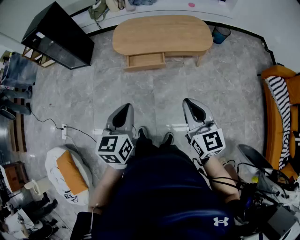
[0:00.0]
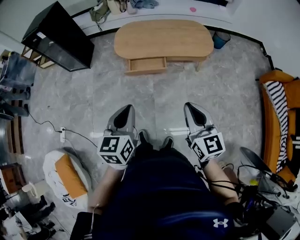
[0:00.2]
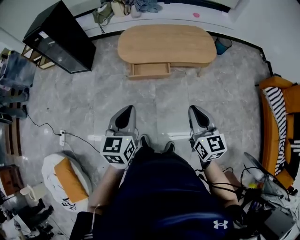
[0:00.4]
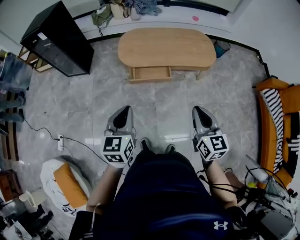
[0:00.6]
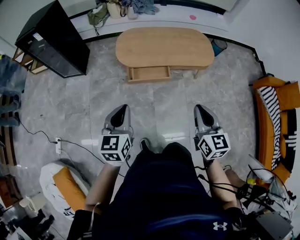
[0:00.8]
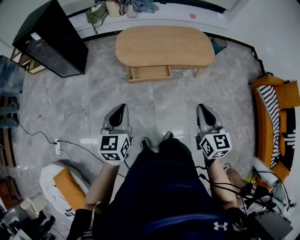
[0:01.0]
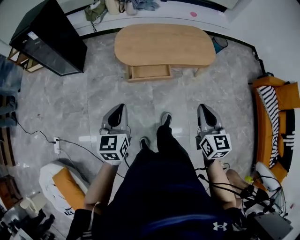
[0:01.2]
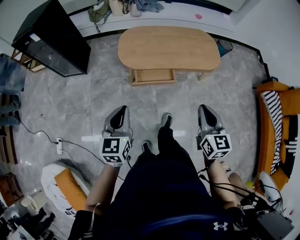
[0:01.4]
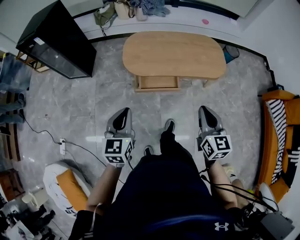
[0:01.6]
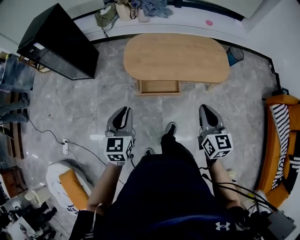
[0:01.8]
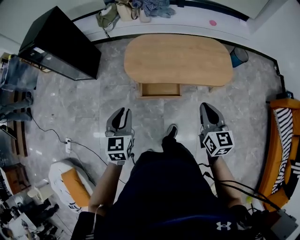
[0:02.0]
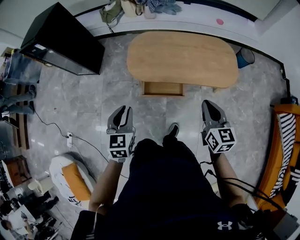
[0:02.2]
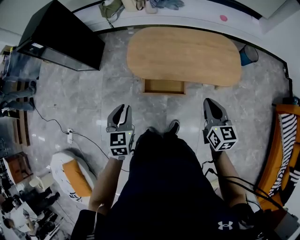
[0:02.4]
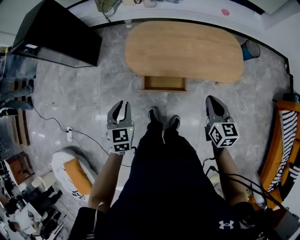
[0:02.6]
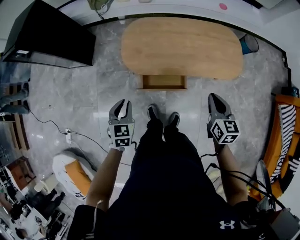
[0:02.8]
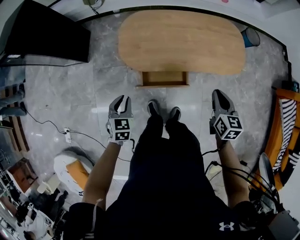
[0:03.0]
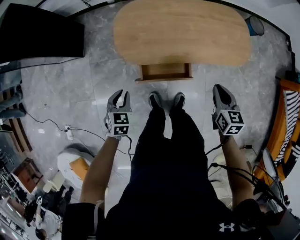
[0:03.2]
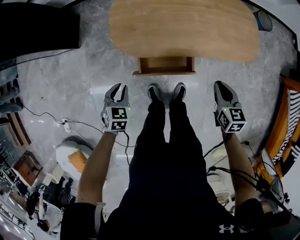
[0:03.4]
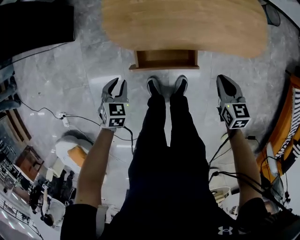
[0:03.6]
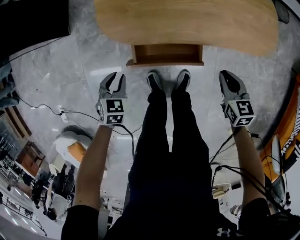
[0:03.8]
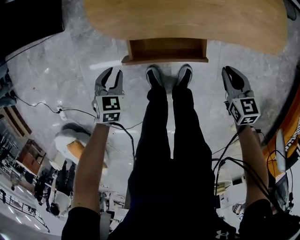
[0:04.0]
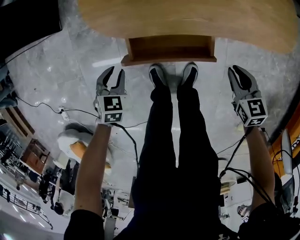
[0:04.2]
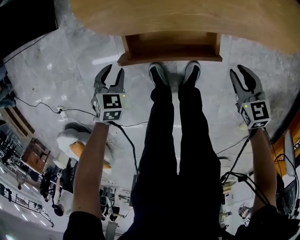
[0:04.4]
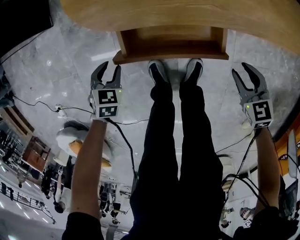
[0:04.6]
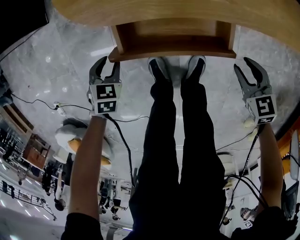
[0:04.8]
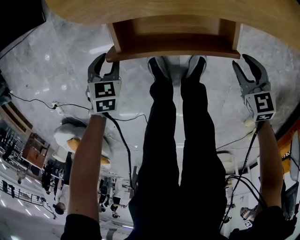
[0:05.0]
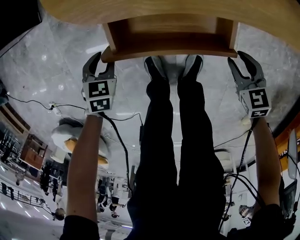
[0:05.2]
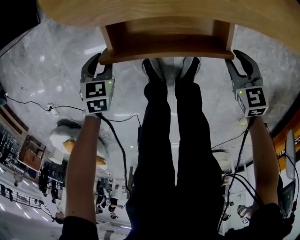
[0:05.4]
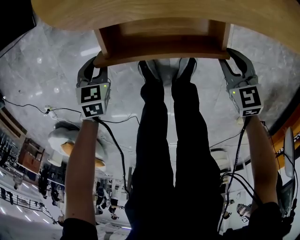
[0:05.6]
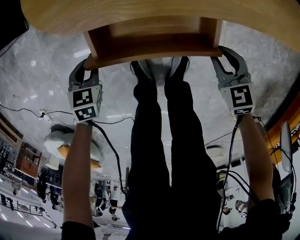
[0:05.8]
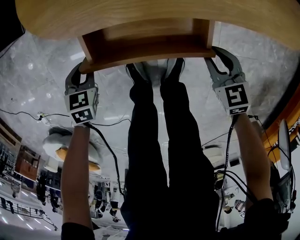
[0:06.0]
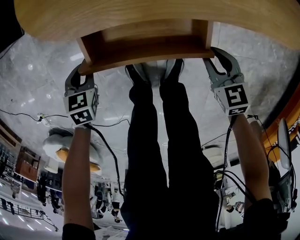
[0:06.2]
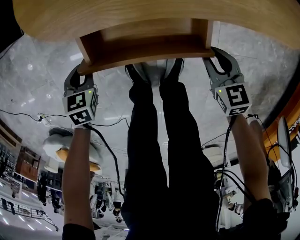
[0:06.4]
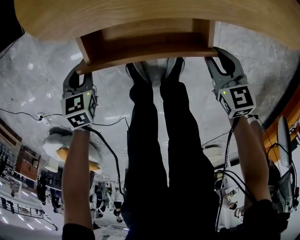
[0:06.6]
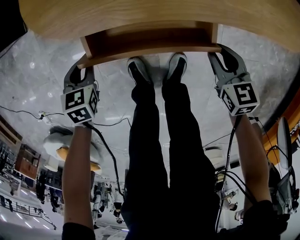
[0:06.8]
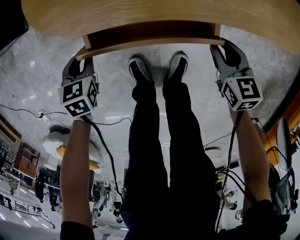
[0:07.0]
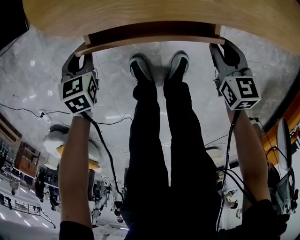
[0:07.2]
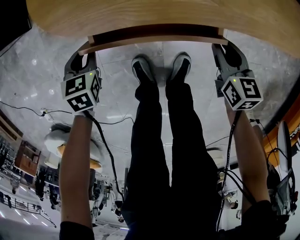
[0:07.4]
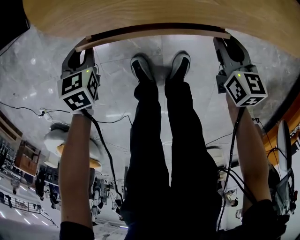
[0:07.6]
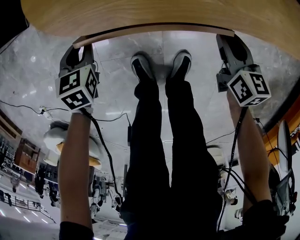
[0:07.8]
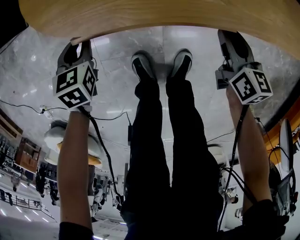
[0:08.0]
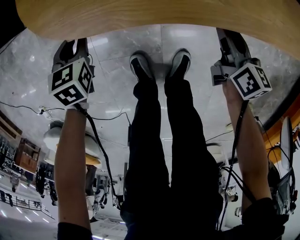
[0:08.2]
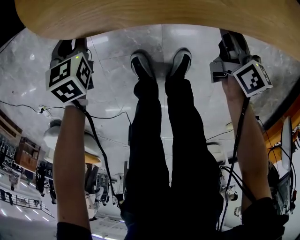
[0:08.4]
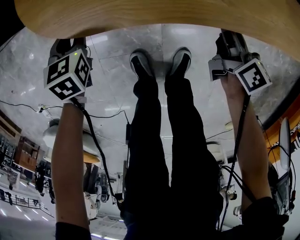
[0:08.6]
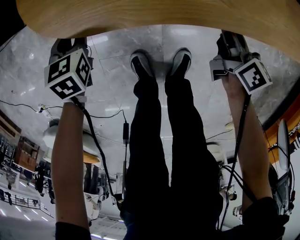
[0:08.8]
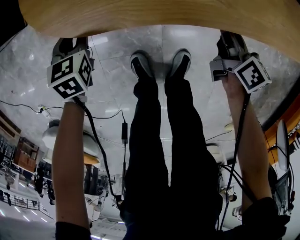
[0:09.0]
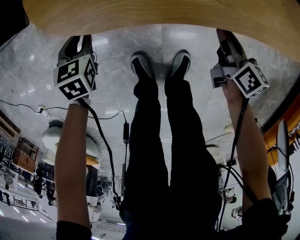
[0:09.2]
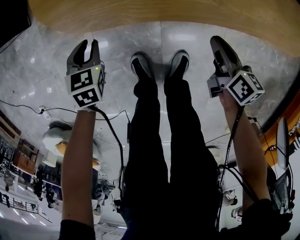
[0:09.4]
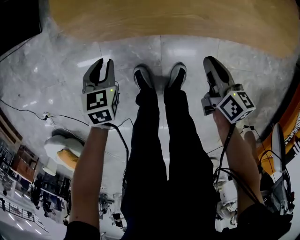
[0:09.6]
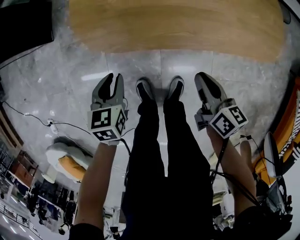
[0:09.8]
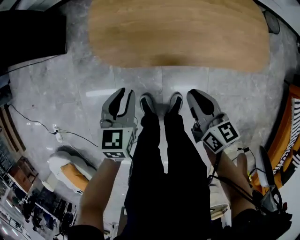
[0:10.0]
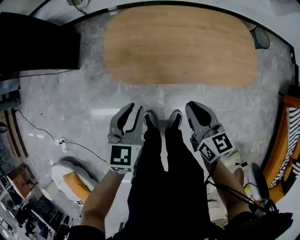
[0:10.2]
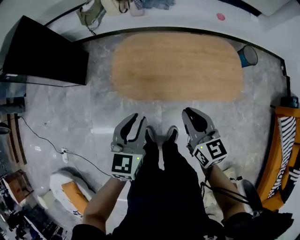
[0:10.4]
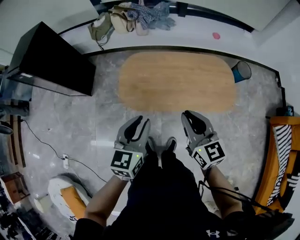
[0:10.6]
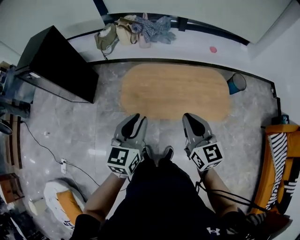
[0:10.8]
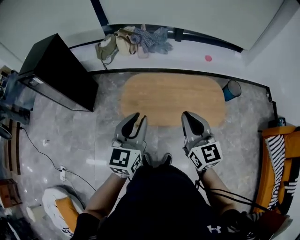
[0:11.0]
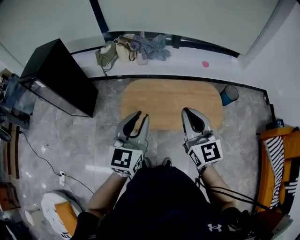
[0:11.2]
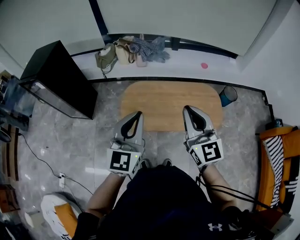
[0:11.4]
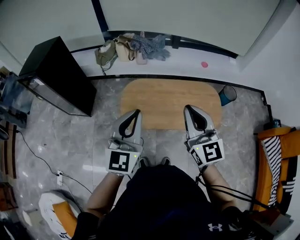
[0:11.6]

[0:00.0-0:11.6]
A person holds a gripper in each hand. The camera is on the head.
0:00.0 to 0:01.4: The left gripper goes approximately 25 cm to the left and forward; the right gripper travels forward and to the left by some 20 cm.
0:01.4 to 0:02.8: The two grippers go some 30 cm forward and downward. The left gripper turns by some 30 degrees.
0:02.8 to 0:04.4: The two grippers go approximately 40 cm downward. The left gripper changes its angle by some 30 degrees; the right gripper turns by about 30 degrees, and opens.
0:04.4 to 0:05.8: Both grippers travel together downward, roughly 10 cm.
0:05.8 to 0:07.2: The right gripper rotates approximately 20 degrees, while the left gripper moves approximately 5 cm.
0:07.2 to 0:08.8: Both grippers travel together forward, approximately 10 cm. The right gripper rotates about 40 degrees.
0:08.8 to 0:10.2: Both grippers travel together upward, about 40 cm. The left gripper swivels about 30 degrees. Meanwhile the right gripper turns by about 30 degrees.
0:10.2 to 0:11.6: The grippers both shift upward by about 40 cm. The left gripper points its fingers about 30 degrees further upward, and closes its fingers. The right gripper changes its angle by roughly 40 degrees.

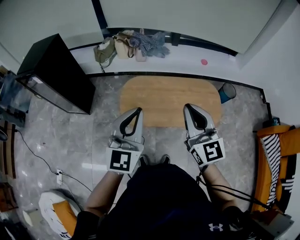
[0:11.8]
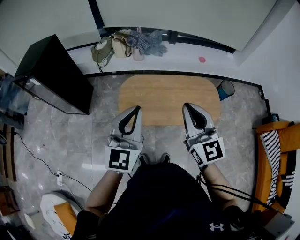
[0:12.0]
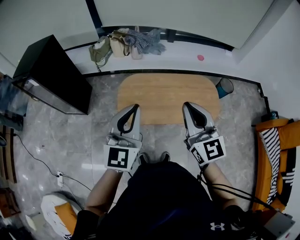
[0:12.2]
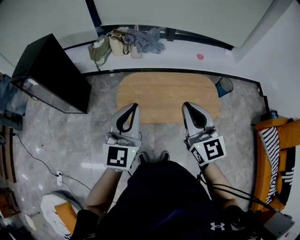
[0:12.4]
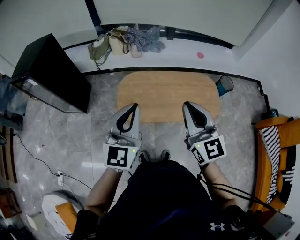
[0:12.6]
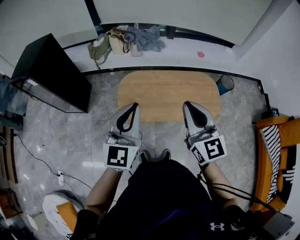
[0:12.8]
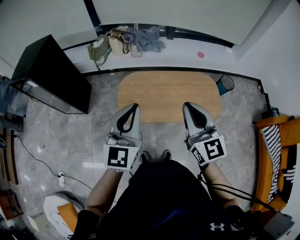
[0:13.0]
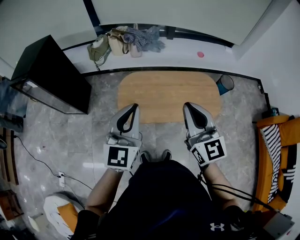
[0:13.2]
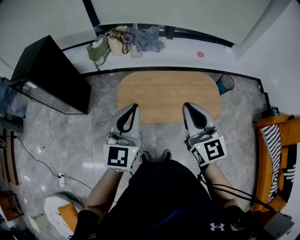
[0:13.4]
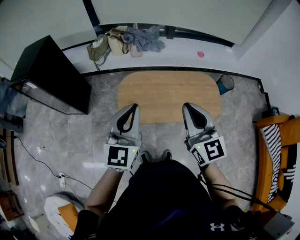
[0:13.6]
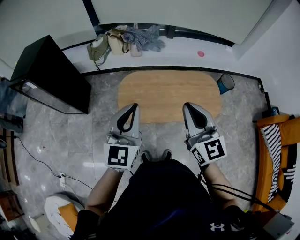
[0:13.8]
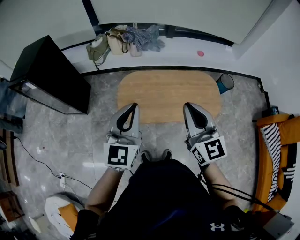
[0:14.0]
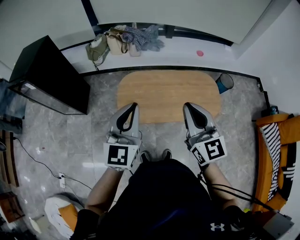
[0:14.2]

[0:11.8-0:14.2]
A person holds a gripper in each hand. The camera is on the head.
0:11.8 to 0:14.2: The grippers stay close to where they were, moving slightly.

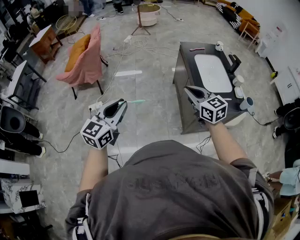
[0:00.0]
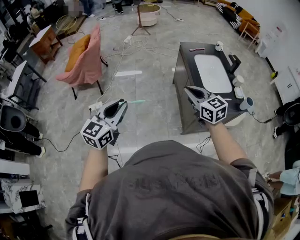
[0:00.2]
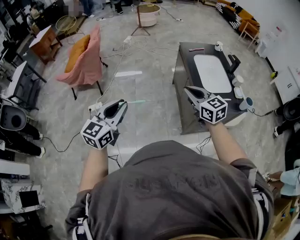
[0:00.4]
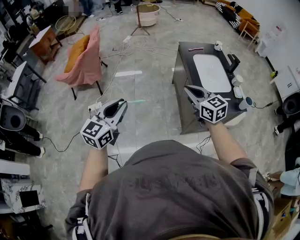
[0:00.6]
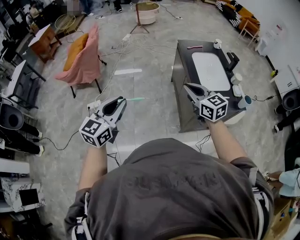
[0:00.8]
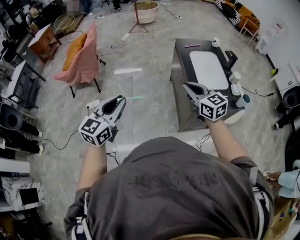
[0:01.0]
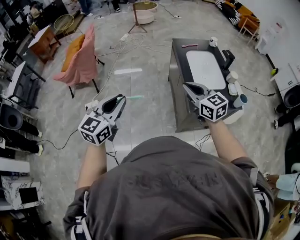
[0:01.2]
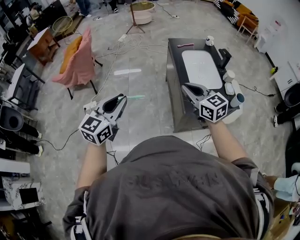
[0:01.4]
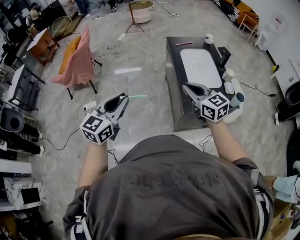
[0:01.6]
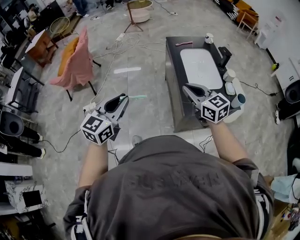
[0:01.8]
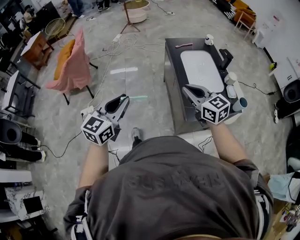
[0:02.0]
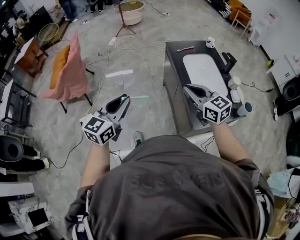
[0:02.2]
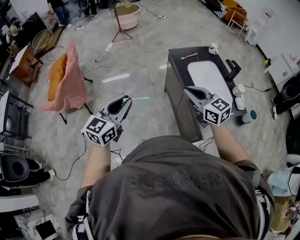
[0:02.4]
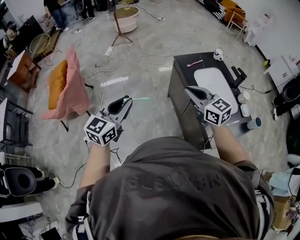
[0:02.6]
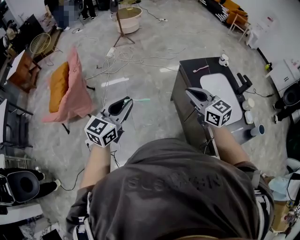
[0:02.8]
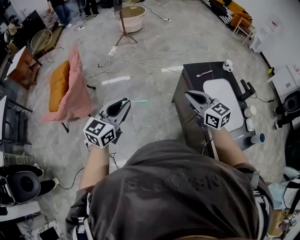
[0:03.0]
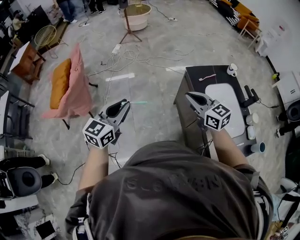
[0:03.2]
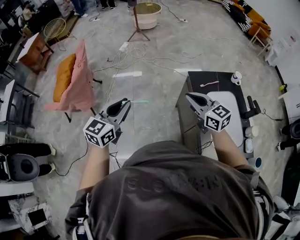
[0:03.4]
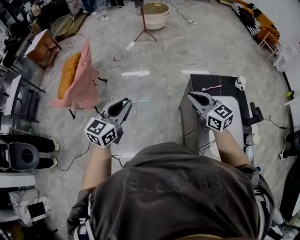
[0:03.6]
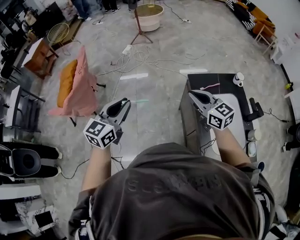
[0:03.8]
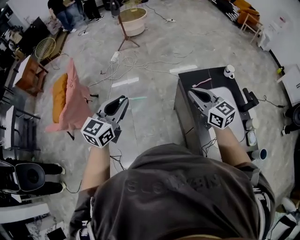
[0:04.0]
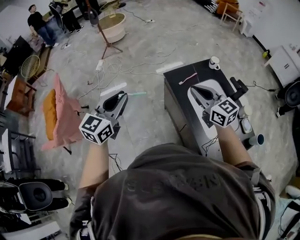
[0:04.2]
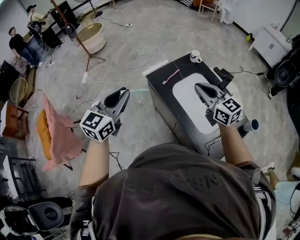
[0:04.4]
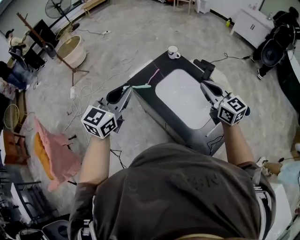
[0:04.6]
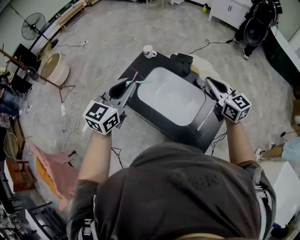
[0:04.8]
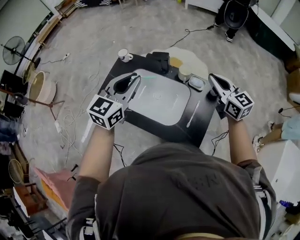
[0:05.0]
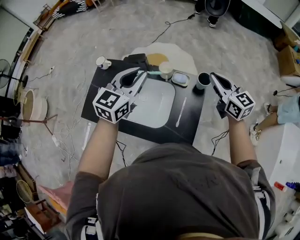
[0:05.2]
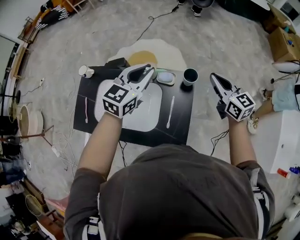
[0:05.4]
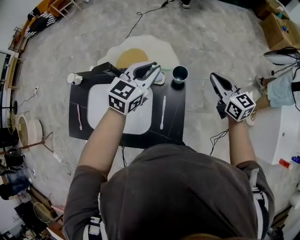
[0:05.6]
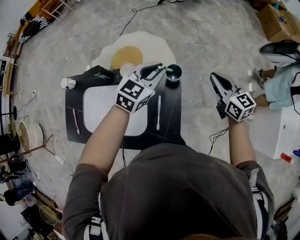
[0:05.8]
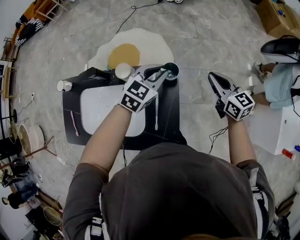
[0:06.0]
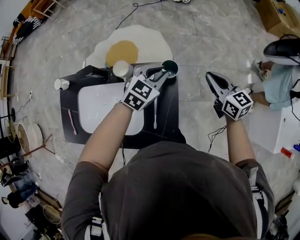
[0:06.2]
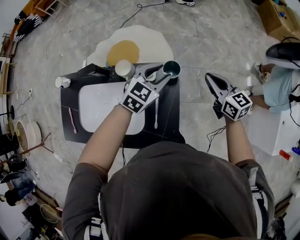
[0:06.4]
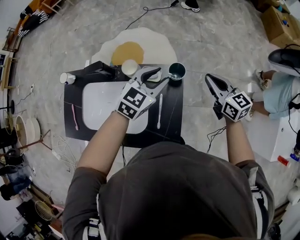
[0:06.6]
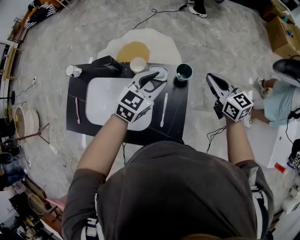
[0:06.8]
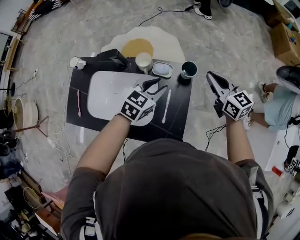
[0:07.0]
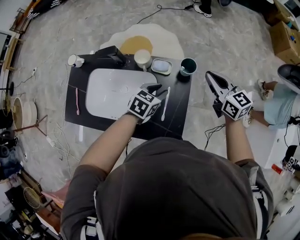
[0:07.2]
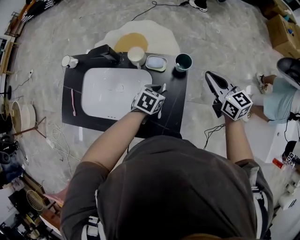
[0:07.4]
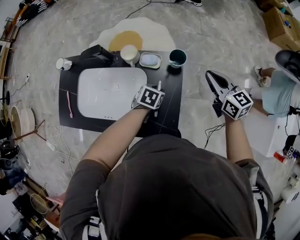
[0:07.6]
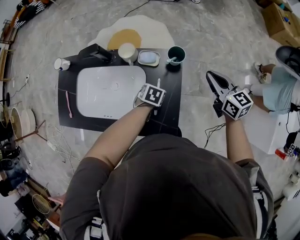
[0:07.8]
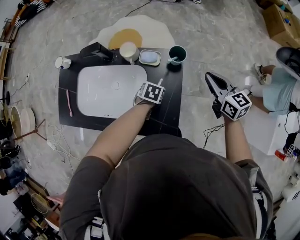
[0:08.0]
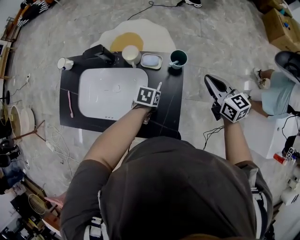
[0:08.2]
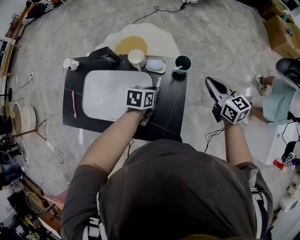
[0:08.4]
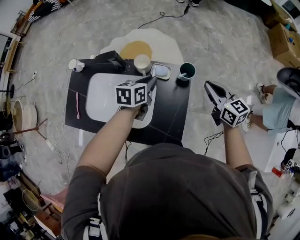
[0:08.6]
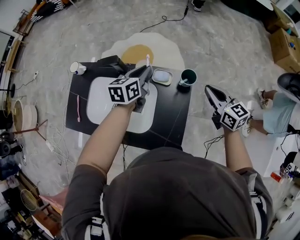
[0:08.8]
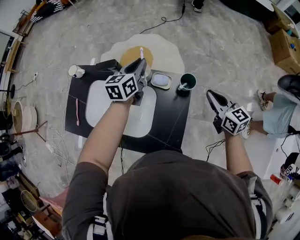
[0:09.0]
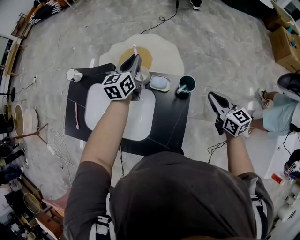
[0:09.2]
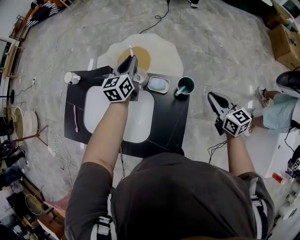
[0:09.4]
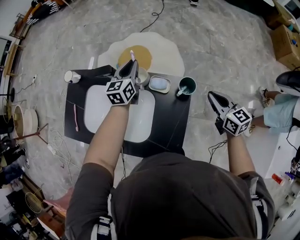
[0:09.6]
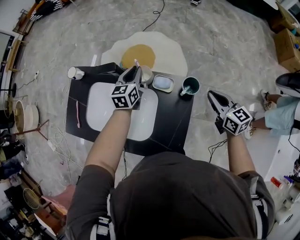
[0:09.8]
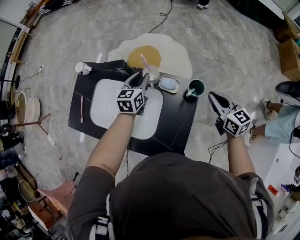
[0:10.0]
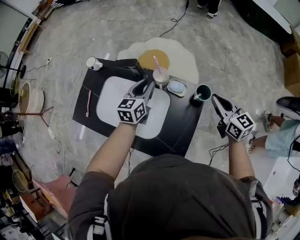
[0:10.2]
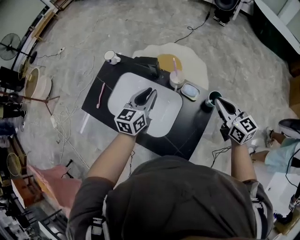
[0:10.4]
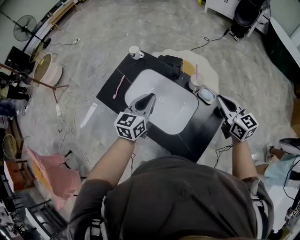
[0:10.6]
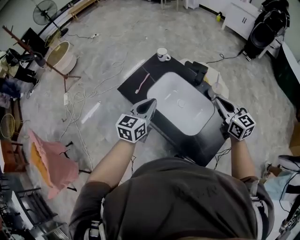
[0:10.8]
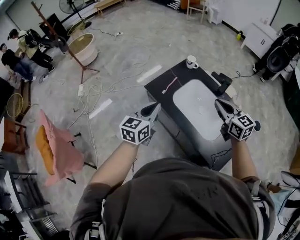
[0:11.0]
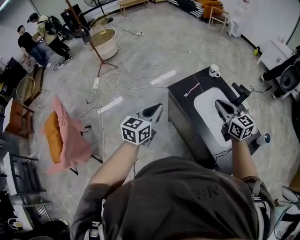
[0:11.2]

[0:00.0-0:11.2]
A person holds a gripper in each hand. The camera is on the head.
0:00.0 to 0:01.6: Both grippers travel together to the right, roughly 15 cm.
0:01.6 to 0:03.2: The two grippers travel together, forward and to the left, some 50 cm.
0:03.2 to 0:04.8: The pair of grippers is taken some 50 cm. The left gripper swivels approximately 50 degrees, while the right gripper changes its angle by about 50 degrees.
0:04.8 to 0:06.4: The right gripper ends up approximately 40 cm from where it was, and changes its angle by approximately 40 degrees; the left gripper moves roughly 60 cm, turns by approximately 50 degrees, and opens up.
0:06.4 to 0:08.0: The right gripper shifts roughly 5 cm backward, and moves approximately 10 cm to the left and comes back, while the left gripper goes roughly 25 cm downward and backward, points its fingers approximately 40 degrees further downward, and closes up.
0:08.0 to 0:09.6: The right gripper changes place by roughly 5 cm, while the left gripper ends up some 30 cm from where it was, and tilts its fingers roughly 50 degrees upward.
0:09.6 to 0:11.2: The two grippers travel together, about 60 cm. The left gripper swivels approximately 30 degrees, while the right gripper changes its angle by approximately 50 degrees.
